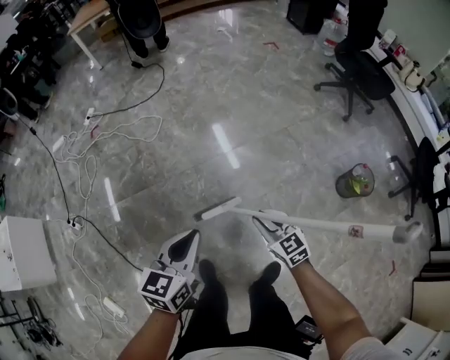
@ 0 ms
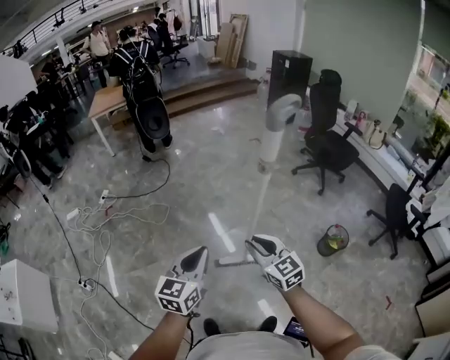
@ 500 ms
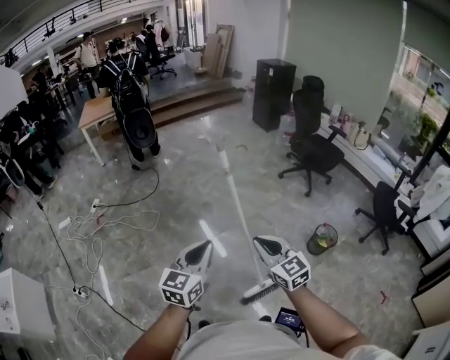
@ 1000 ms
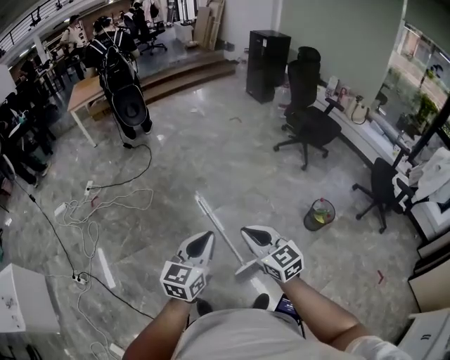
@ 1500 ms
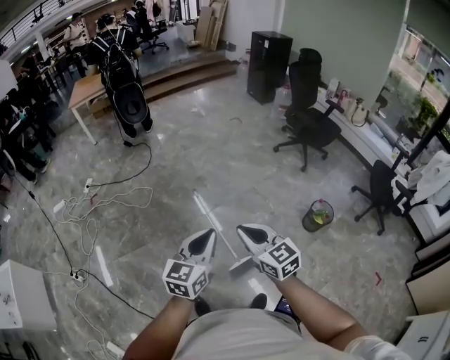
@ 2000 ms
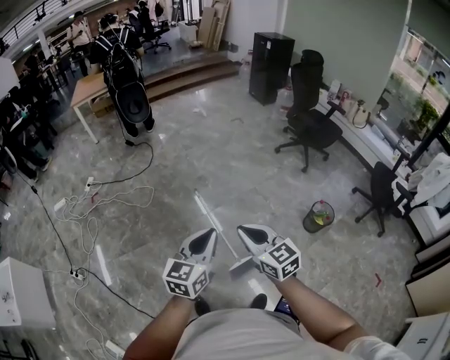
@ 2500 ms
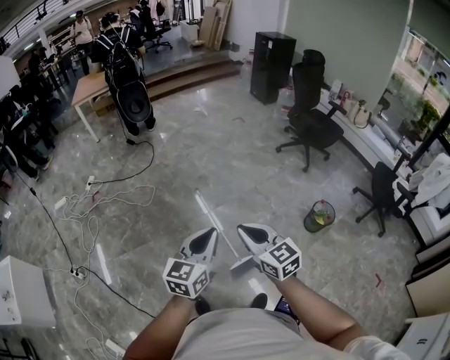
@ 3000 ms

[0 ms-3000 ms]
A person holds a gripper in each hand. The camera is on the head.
0 ms to 1500 ms: The left gripper moves upward and to the right, roughly 30 cm, and rotates approximately 20 degrees. Meanwhile the right gripper travels upward by about 40 cm.
1500 ms to 3000 ms: The grippers stay close to where they were, moving slightly.

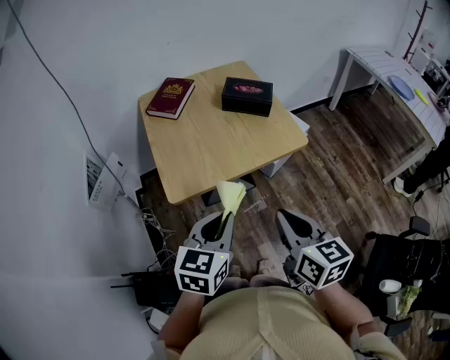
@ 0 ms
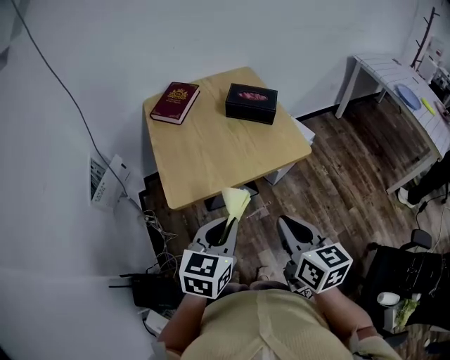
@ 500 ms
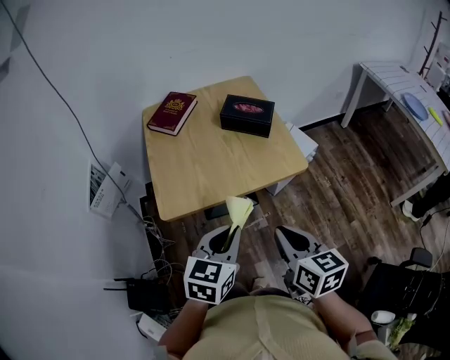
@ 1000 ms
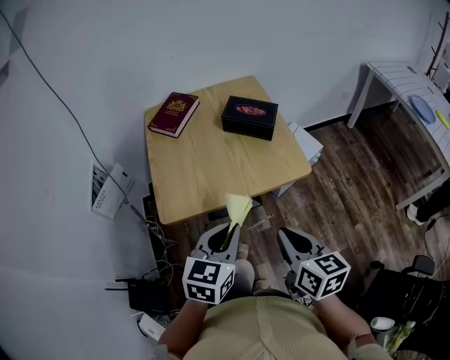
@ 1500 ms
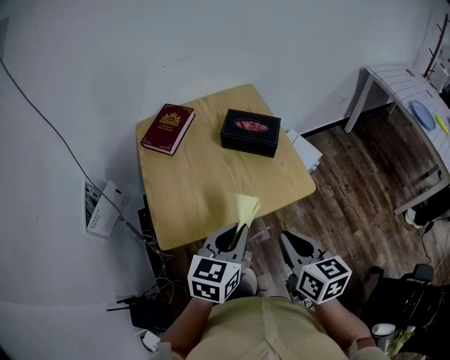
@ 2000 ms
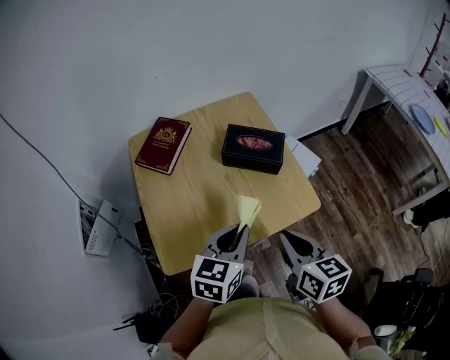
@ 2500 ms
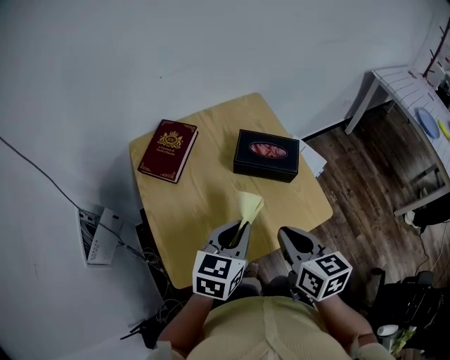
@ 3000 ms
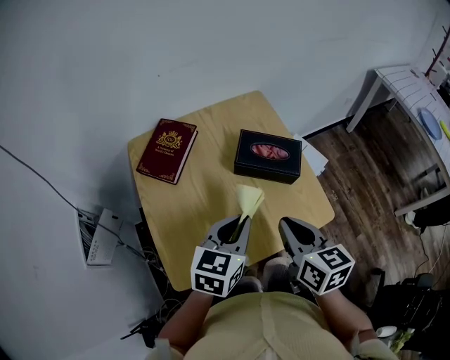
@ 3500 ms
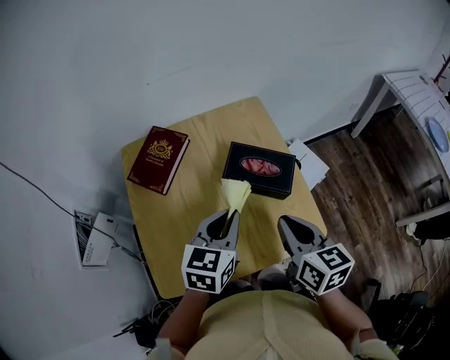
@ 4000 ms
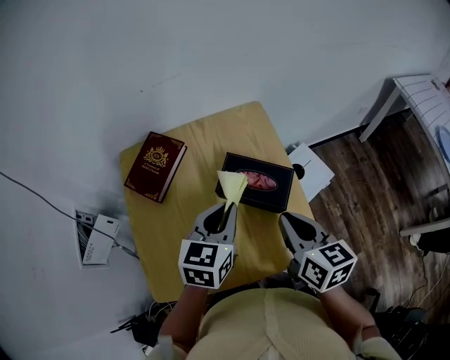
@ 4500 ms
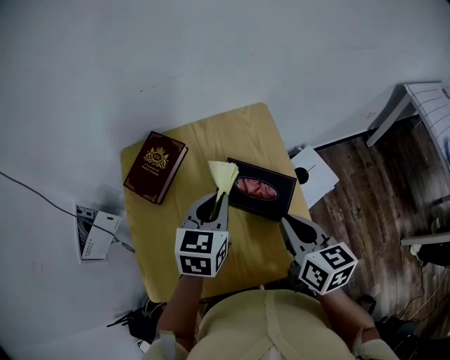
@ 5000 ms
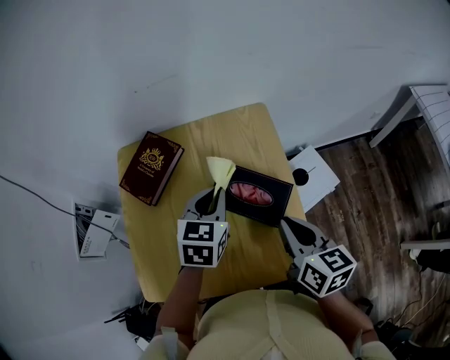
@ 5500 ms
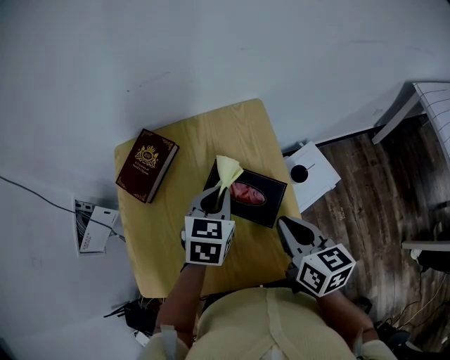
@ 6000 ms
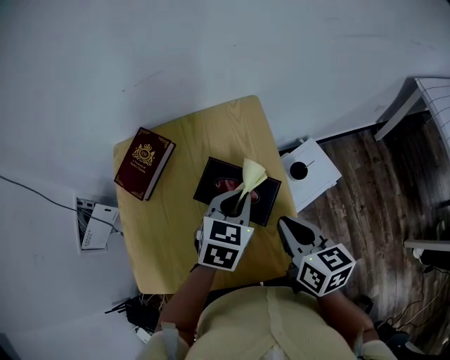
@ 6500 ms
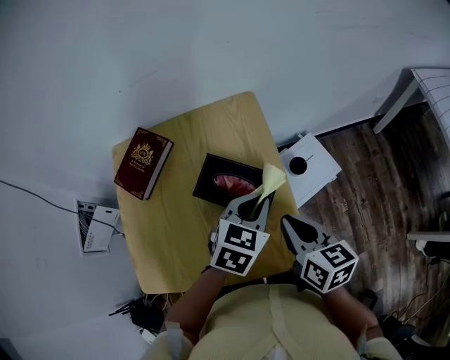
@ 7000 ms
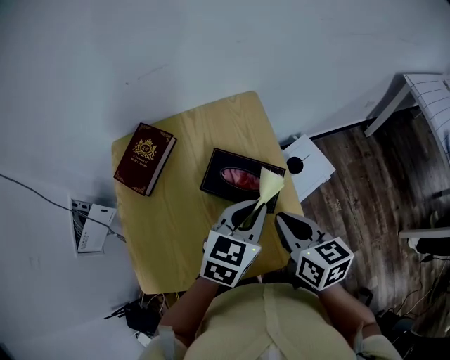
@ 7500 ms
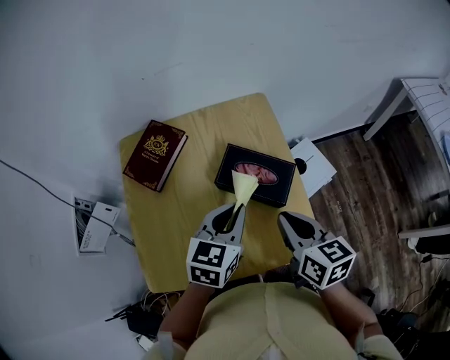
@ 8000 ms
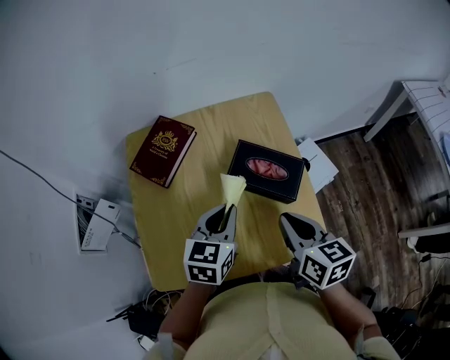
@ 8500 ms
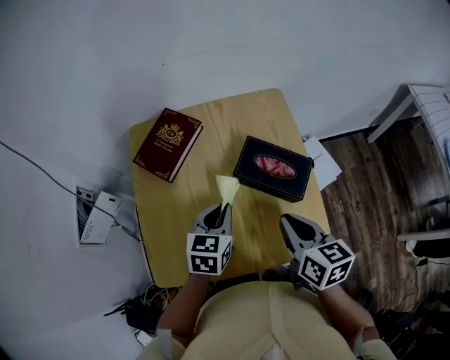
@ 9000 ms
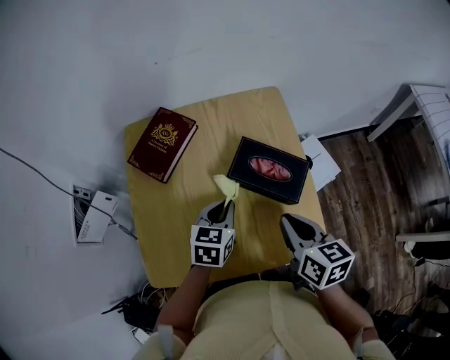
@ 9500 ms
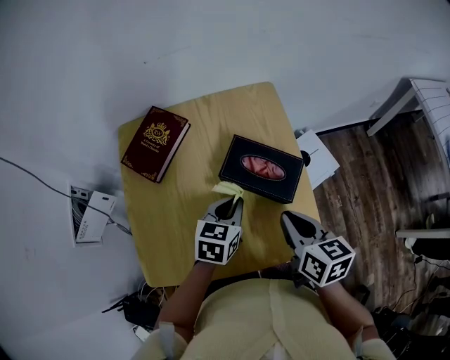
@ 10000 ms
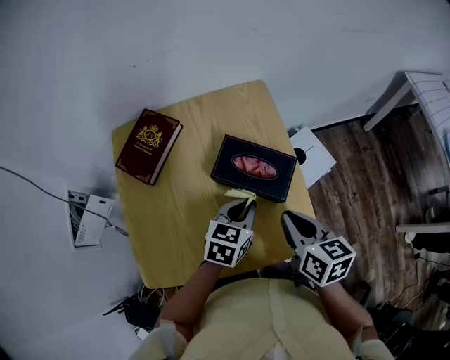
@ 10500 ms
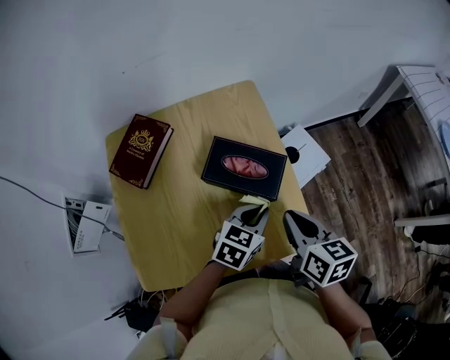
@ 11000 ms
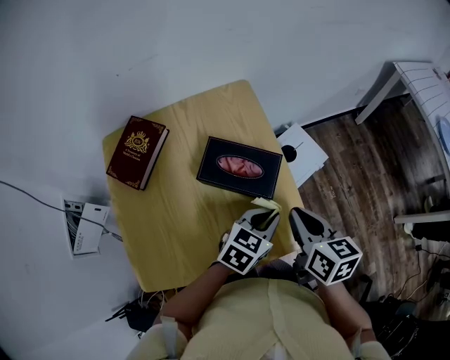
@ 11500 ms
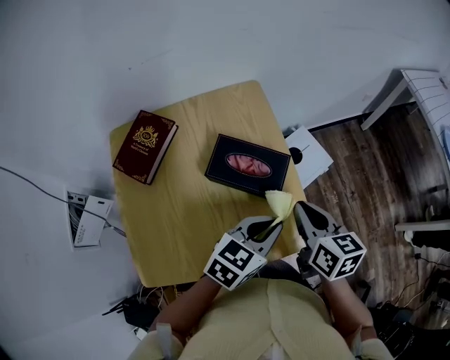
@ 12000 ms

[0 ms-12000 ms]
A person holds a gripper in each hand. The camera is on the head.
0 ms to 2000 ms: Both grippers travel together forward and to the right, roughly 15 cm.
2000 ms to 4000 ms: The two grippers go approximately 20 cm forward.
4000 ms to 6000 ms: Both grippers travel together forward and to the right, roughly 10 cm.
6000 ms to 8000 ms: The left gripper moves backward, approximately 10 cm, and moves roughly 10 cm to the right and comes back; the right gripper ends up roughly 5 cm from where it was.
8000 ms to 10000 ms: The left gripper goes approximately 10 cm downward.
10000 ms to 12000 ms: The left gripper heads to the right and upward, covering approximately 15 cm, and changes its angle by about 30 degrees, while the right gripper shifts approximately 5 cm to the right.

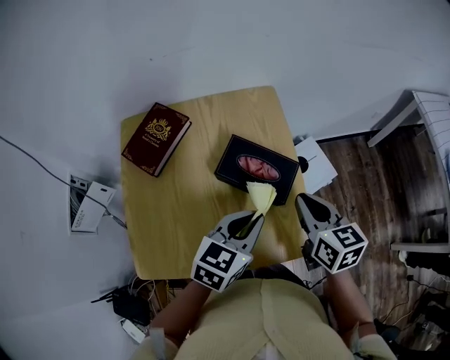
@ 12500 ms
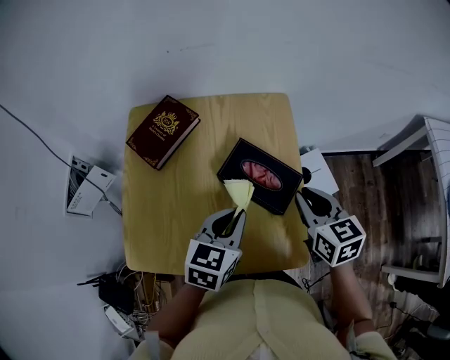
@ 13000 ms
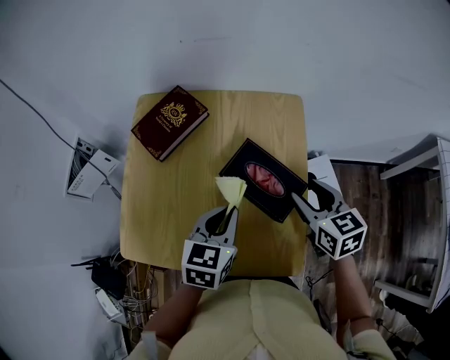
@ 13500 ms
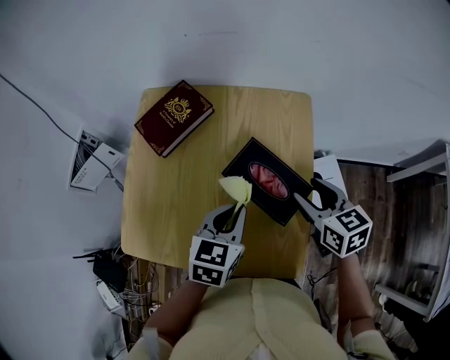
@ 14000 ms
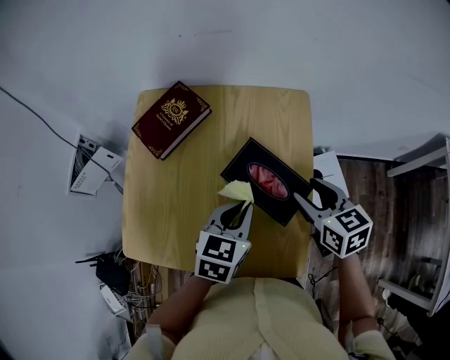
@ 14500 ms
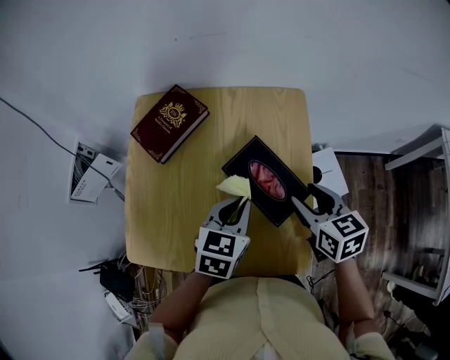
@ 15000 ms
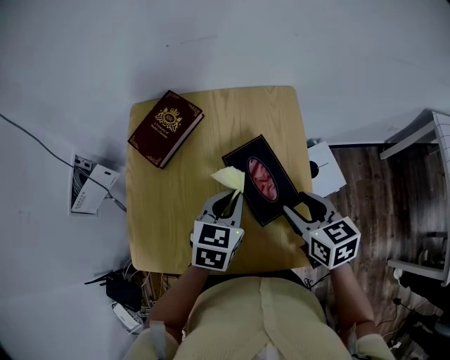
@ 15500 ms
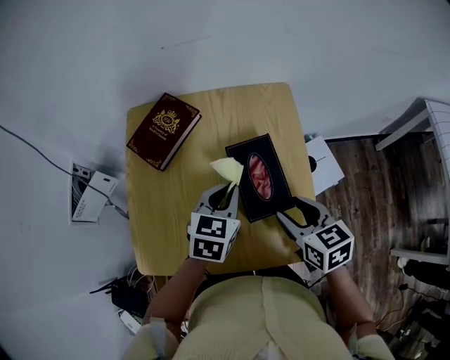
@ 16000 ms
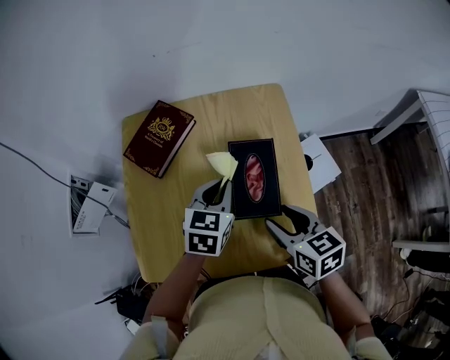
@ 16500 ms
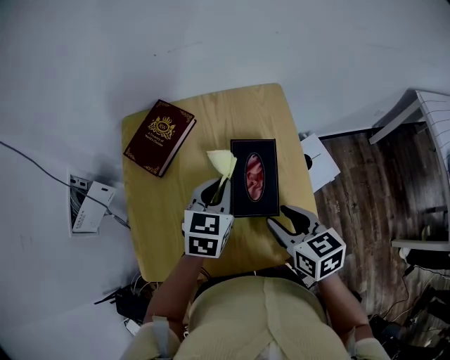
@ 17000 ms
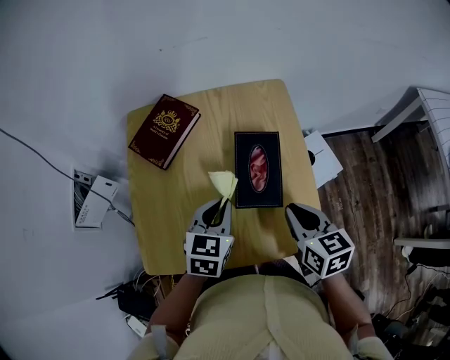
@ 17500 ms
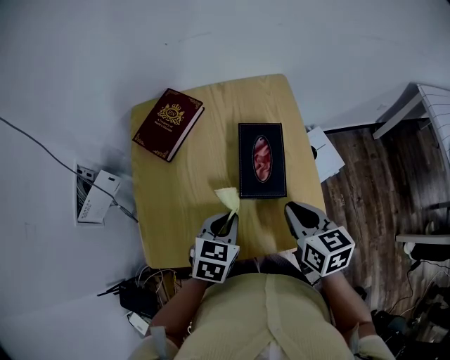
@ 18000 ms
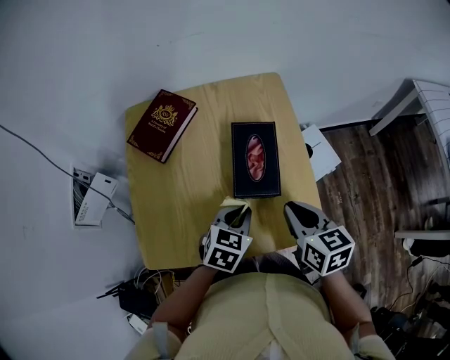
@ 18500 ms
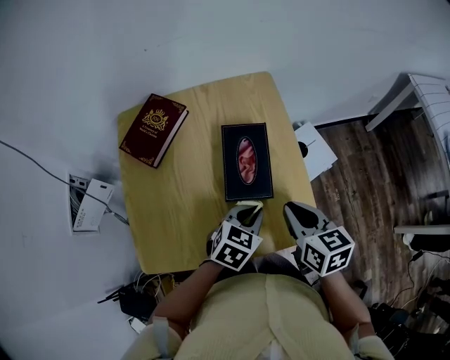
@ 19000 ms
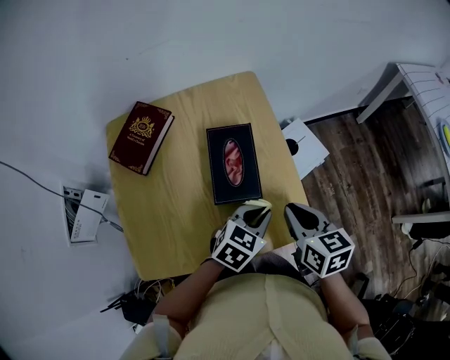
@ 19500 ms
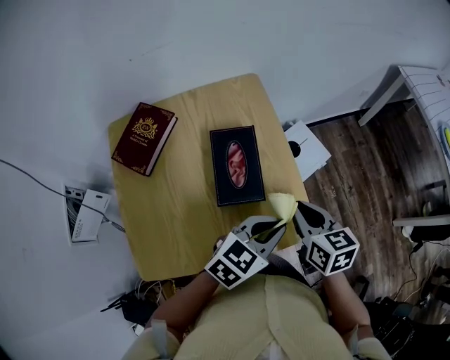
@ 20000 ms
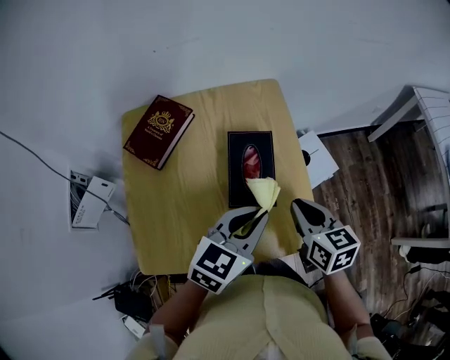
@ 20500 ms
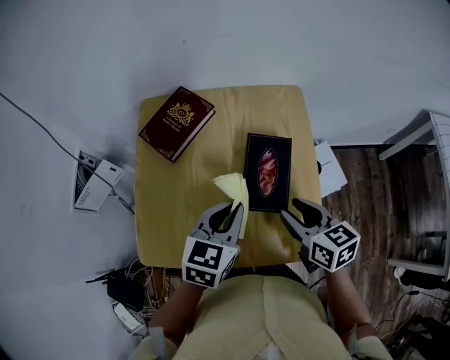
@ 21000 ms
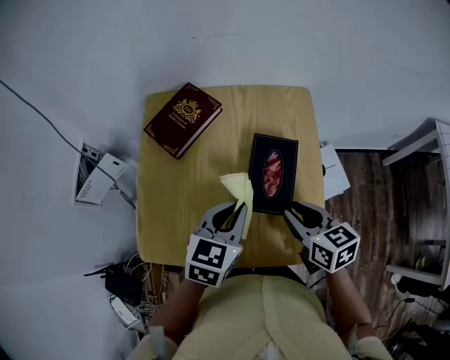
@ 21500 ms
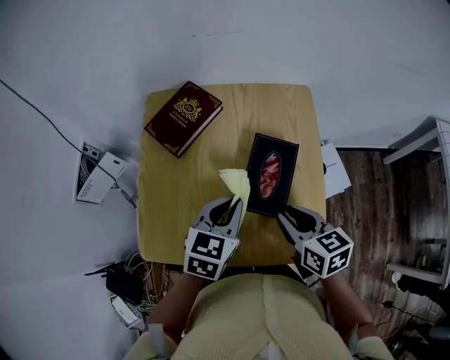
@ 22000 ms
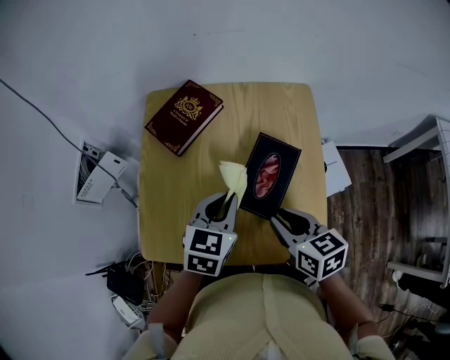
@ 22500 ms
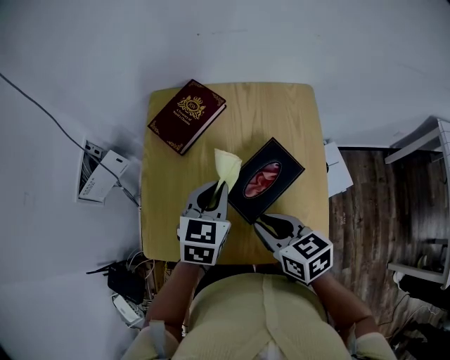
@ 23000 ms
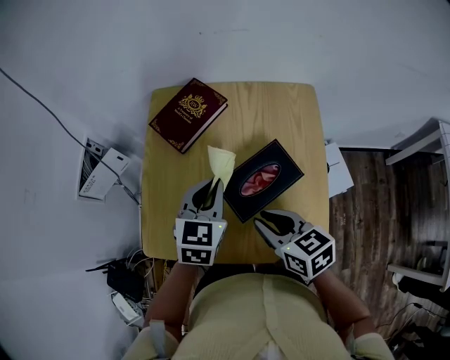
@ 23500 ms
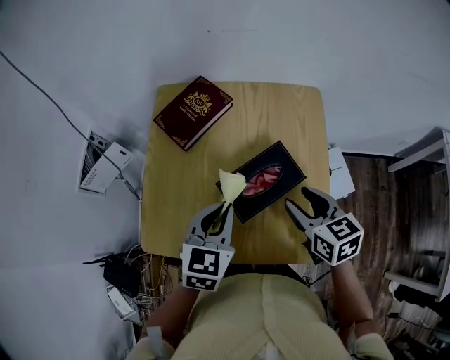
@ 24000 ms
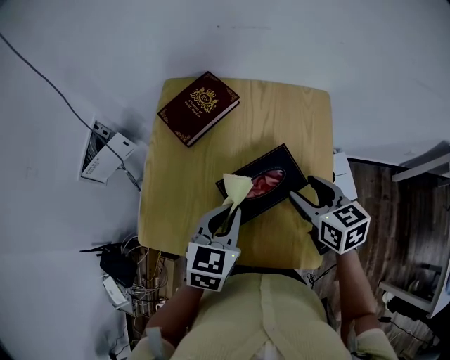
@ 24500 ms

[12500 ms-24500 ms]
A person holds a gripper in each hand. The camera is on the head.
12500 ms to 14500 ms: The right gripper ends up about 10 cm from where it was, turns by some 20 degrees, and opens its fingers. The left gripper moves roughly 10 cm, and changes its angle by about 30 degrees.
14500 ms to 16500 ms: The left gripper heads to the left and forward, covering roughly 10 cm, while the right gripper shifts about 15 cm backward and to the left.
16500 ms to 18500 ms: The left gripper travels backward and downward by roughly 15 cm, while the right gripper closes.
18500 ms to 20500 ms: The left gripper is displaced upward by approximately 15 cm, and swivels about 20 degrees.
20500 ms to 22500 ms: The right gripper shifts by roughly 10 cm, and swivels approximately 20 degrees; the left gripper shifts by roughly 15 cm, and turns by some 30 degrees.
22500 ms to 24500 ms: The right gripper travels forward and to the right by approximately 10 cm, and opens up.
